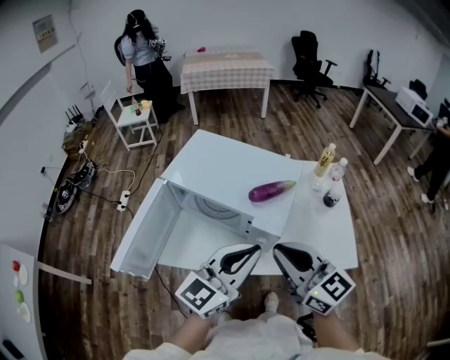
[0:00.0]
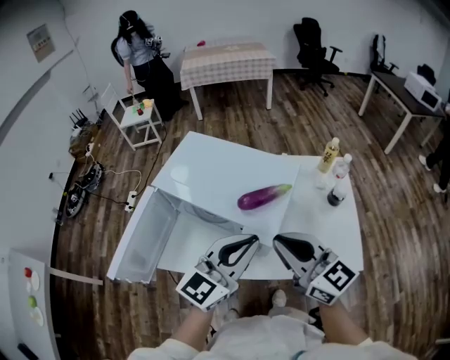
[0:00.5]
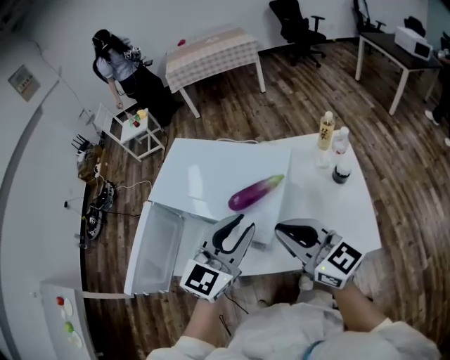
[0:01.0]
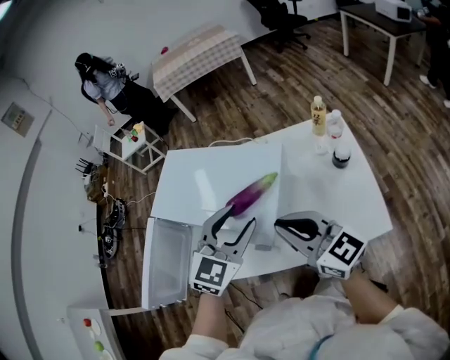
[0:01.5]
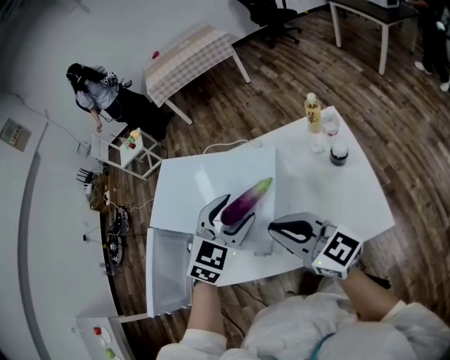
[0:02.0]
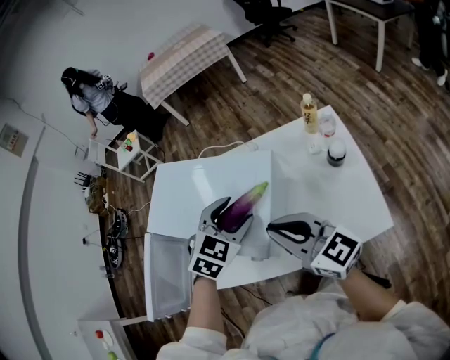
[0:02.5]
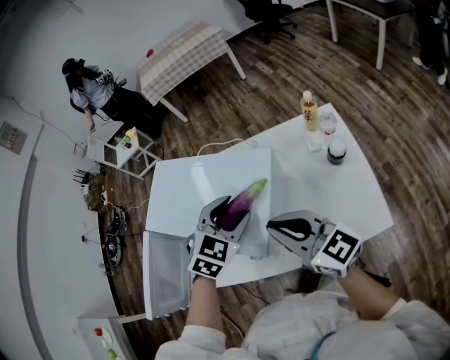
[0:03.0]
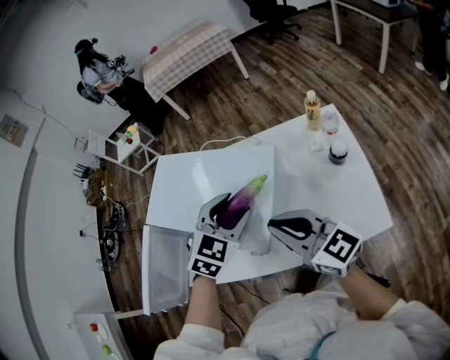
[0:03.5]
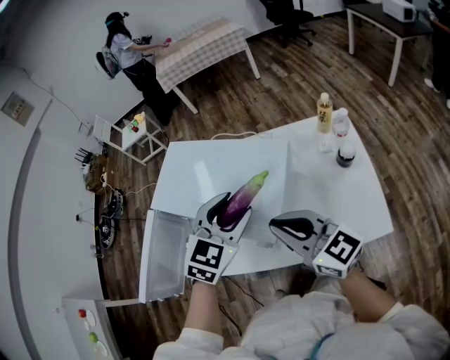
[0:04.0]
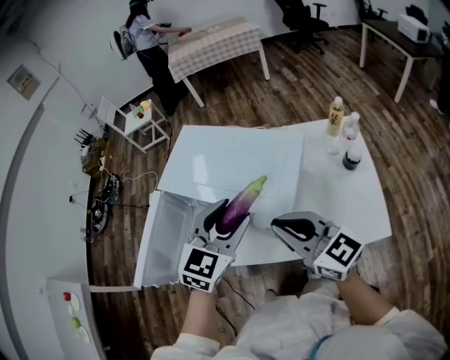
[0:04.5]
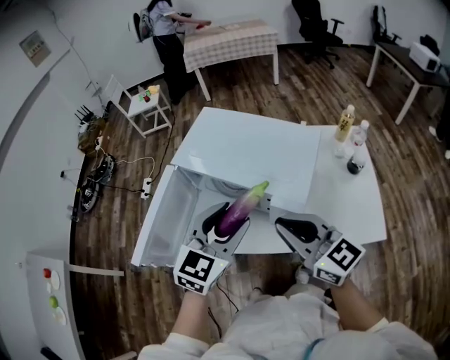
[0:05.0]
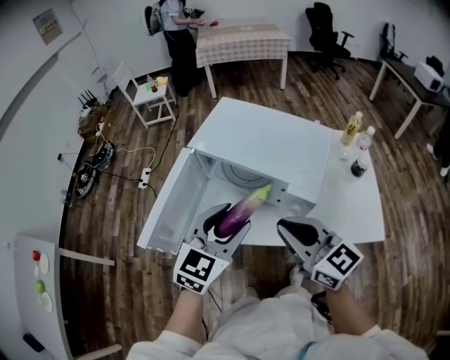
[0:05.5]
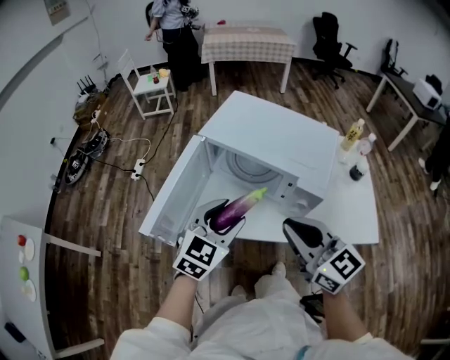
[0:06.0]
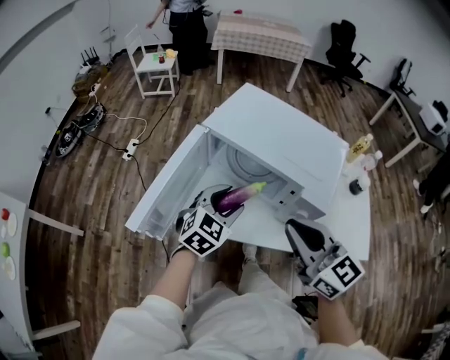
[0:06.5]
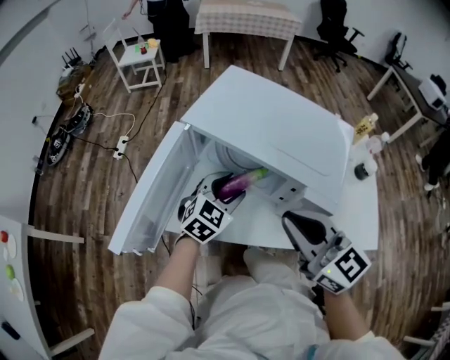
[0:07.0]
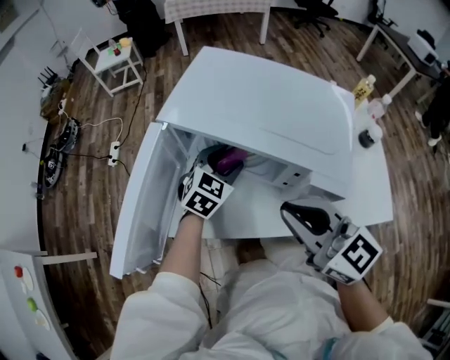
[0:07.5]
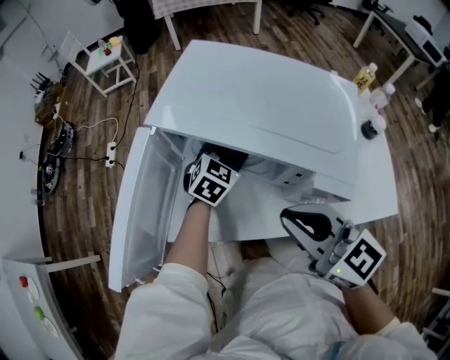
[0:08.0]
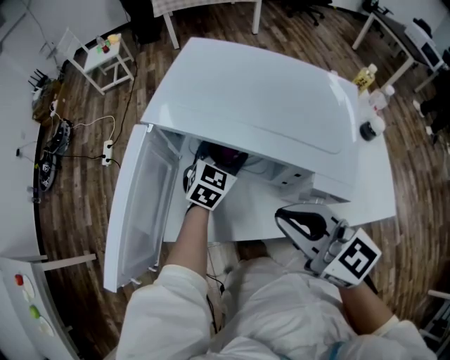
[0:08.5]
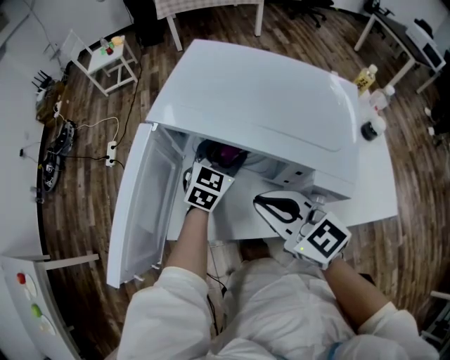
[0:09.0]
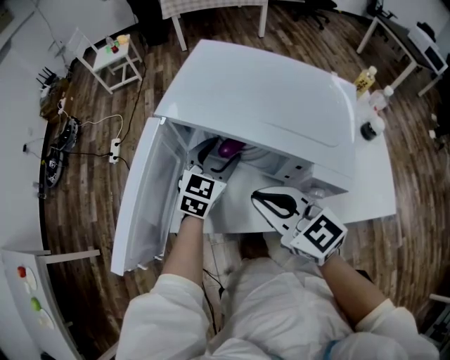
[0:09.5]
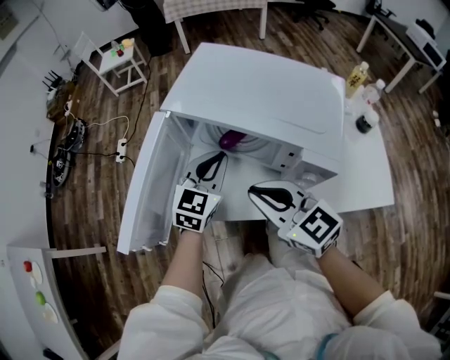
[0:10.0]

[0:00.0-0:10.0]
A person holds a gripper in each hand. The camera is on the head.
0:00.0 to 0:02.0: The right gripper is displaced forward and to the right by some 10 cm; the left gripper goes some 20 cm forward, angles its fingers downward, by roughly 40 degrees, and opens up.
0:02.0 to 0:04.0: There are only small adjustments of the grippers.
0:04.0 to 0:06.0: Both grippers move to the left and backward, approximately 20 cm.
0:06.0 to 0:08.0: The right gripper moves forward and downward, some 10 cm. The left gripper heads forward and downward, covering about 30 cm.
0:08.0 to 0:10.0: The right gripper is displaced to the left by approximately 5 cm, while the left gripper heads upward, backward and to the left, covering approximately 15 cm, rotates about 20 degrees, and closes.

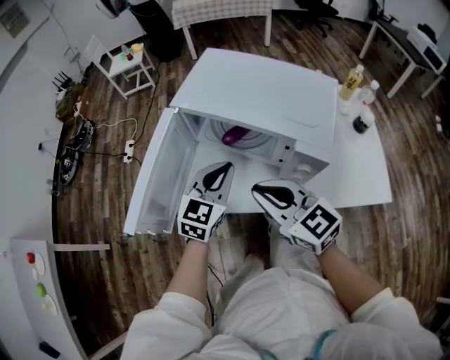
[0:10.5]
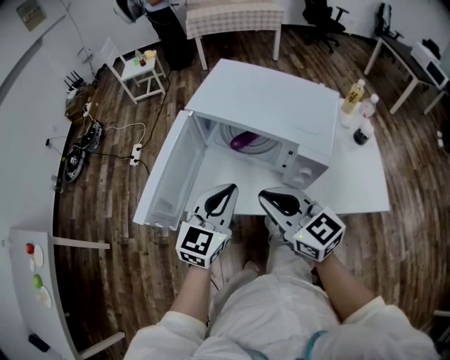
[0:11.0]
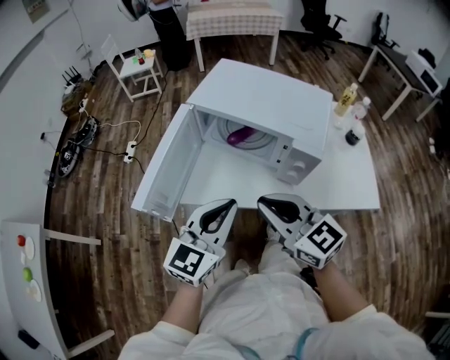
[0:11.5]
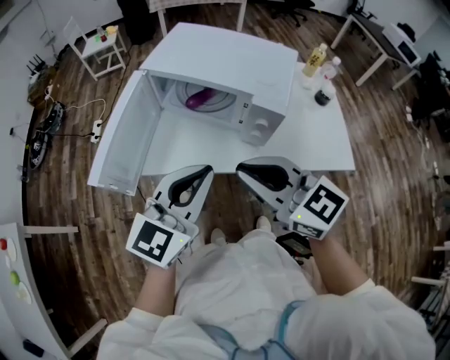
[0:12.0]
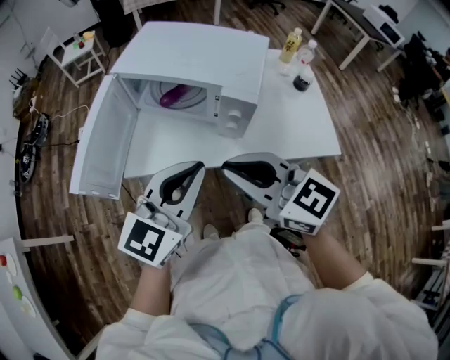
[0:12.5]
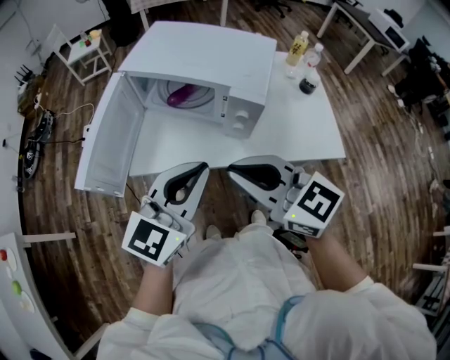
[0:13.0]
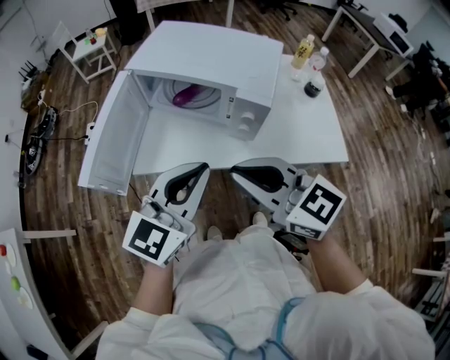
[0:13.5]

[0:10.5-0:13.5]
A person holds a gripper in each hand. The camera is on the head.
0:10.5 to 0:12.0: The left gripper is displaced backward and upward by some 20 cm. The right gripper is displaced backward and upward by roughly 15 cm.
0:12.0 to 0:13.5: There are only small adjustments of the grippers.

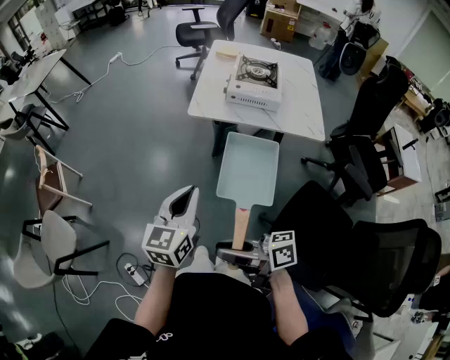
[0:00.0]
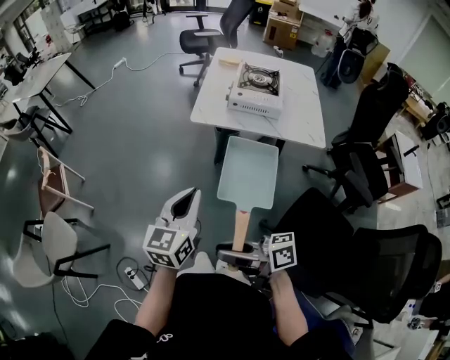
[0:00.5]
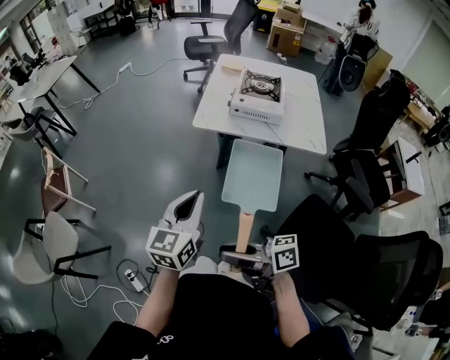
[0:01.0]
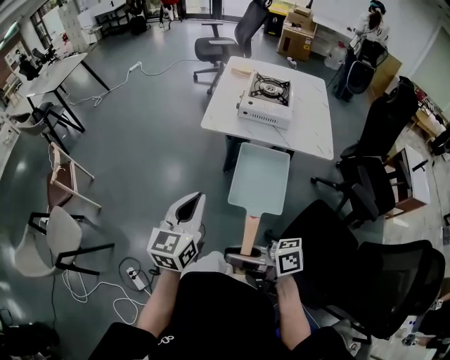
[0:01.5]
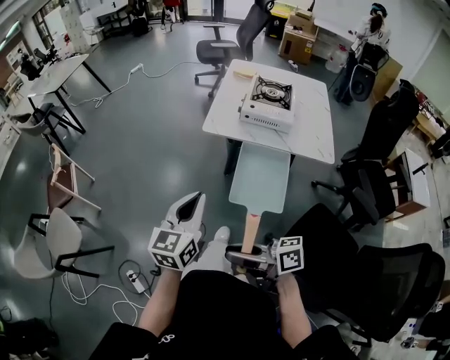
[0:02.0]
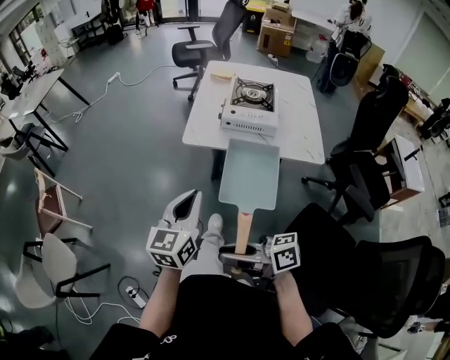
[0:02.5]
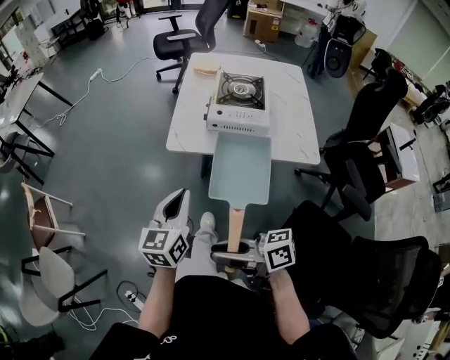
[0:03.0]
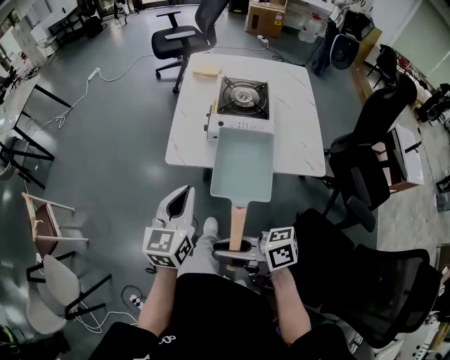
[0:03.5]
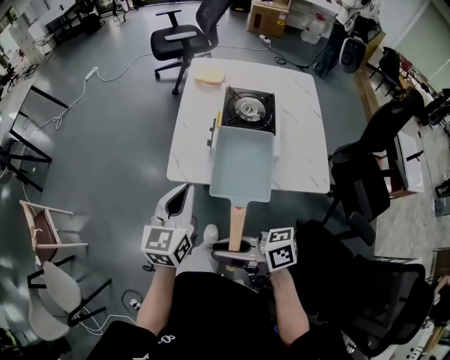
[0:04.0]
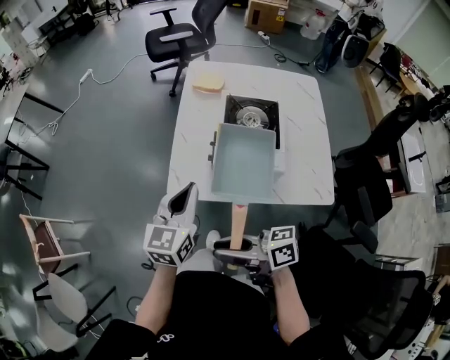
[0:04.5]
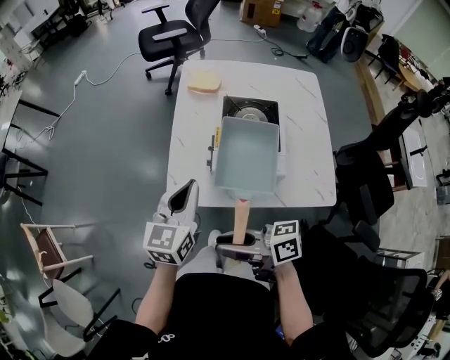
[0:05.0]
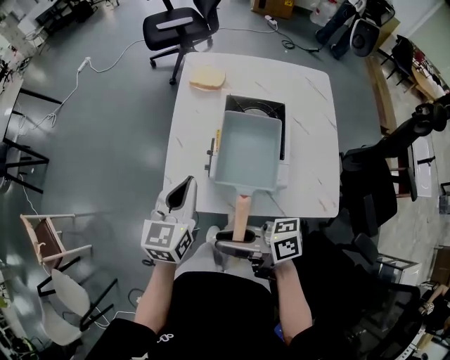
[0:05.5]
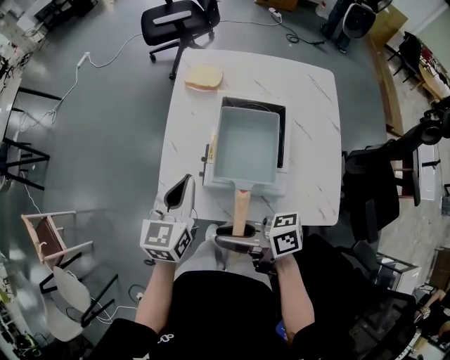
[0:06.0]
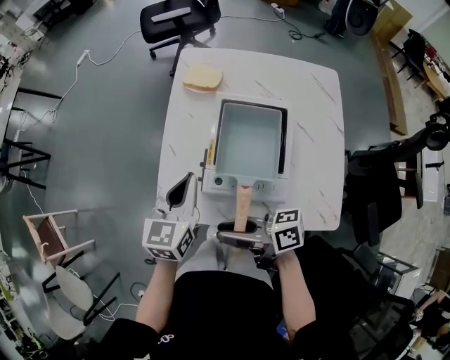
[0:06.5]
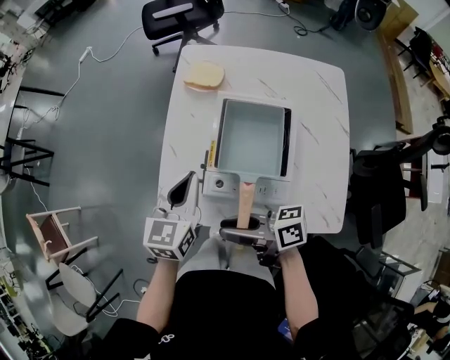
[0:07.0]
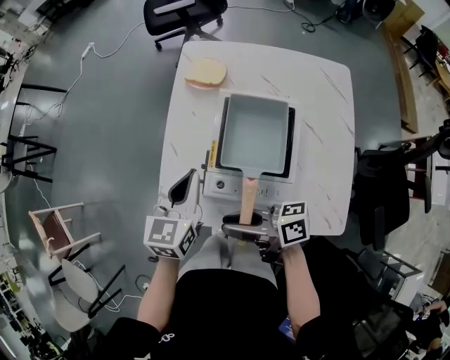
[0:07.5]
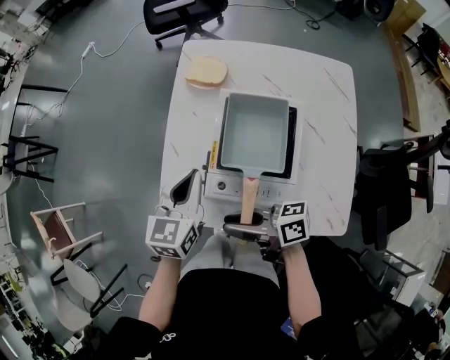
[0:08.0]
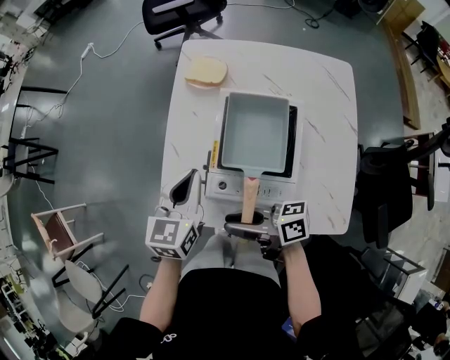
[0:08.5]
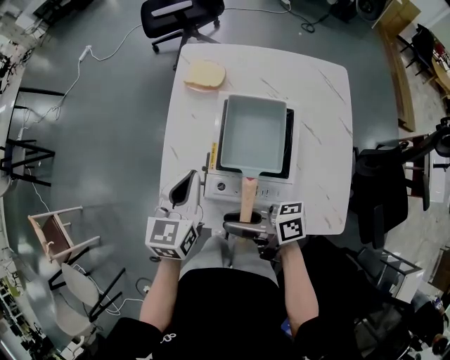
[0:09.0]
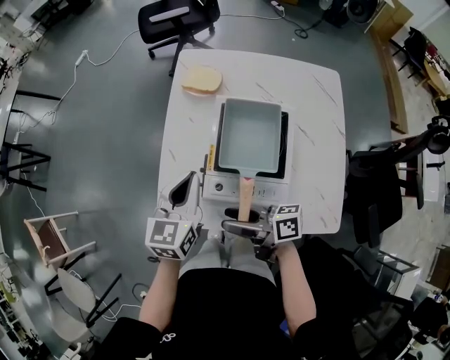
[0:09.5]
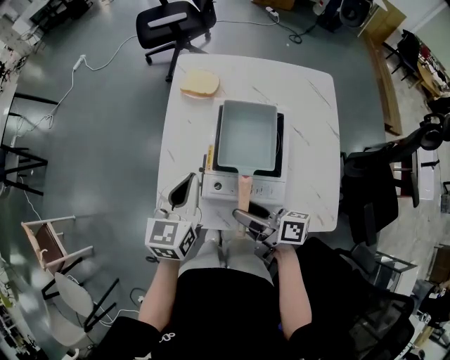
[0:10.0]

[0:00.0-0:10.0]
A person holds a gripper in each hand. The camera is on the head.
0:00.0 to 0:02.0: The grippers make only small movements.
0:02.0 to 0:04.0: The two grippers go roughly 30 cm forward and to the right.
0:04.0 to 0:06.0: Both grippers travel together forward and to the right, roughly 20 cm.
0:06.0 to 0:08.0: The right gripper is displaced to the right by about 5 cm. Meanwhile the left gripper moves approximately 5 cm.
0:08.0 to 0:10.0: The right gripper goes about 5 cm to the right, rotates approximately 30 degrees, and opens its fingers.

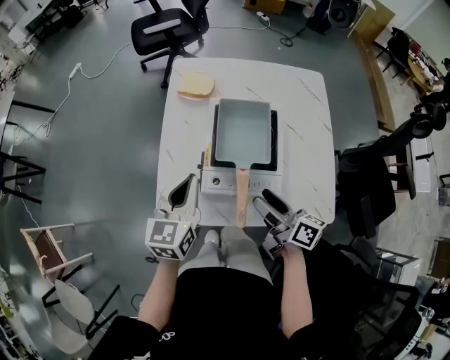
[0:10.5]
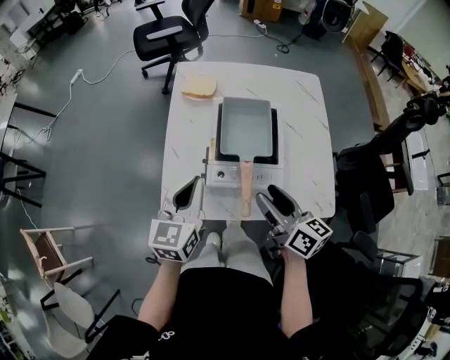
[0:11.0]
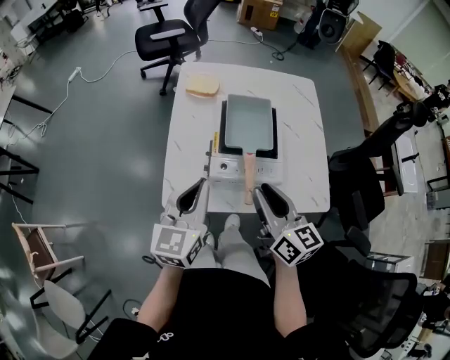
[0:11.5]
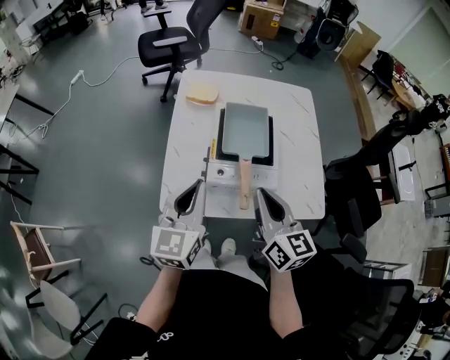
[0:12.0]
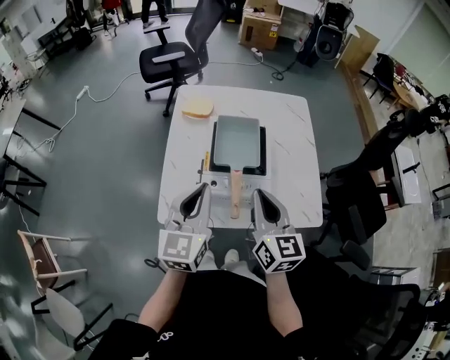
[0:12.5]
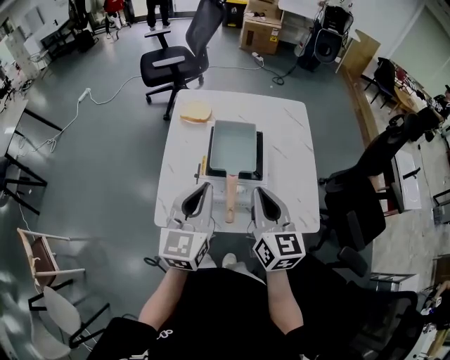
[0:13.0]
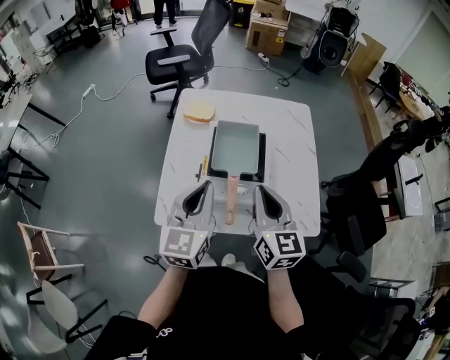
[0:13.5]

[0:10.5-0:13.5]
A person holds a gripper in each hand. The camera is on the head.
0:10.5 to 0:12.0: The left gripper shifts roughly 10 cm backward and upward; the right gripper goes some 15 cm upward and backward, turns by approximately 40 degrees, and closes.
0:12.0 to 0:13.5: The right gripper ends up roughly 5 cm from where it was, while the left gripper moves to the right, approximately 5 cm.
